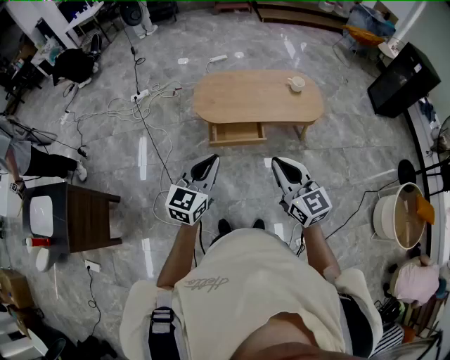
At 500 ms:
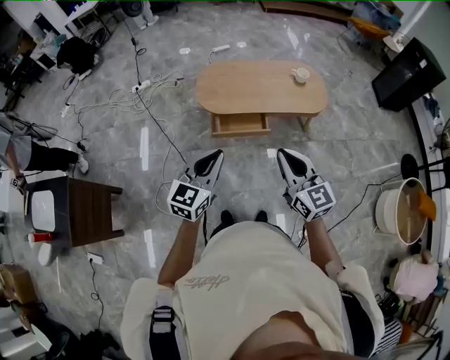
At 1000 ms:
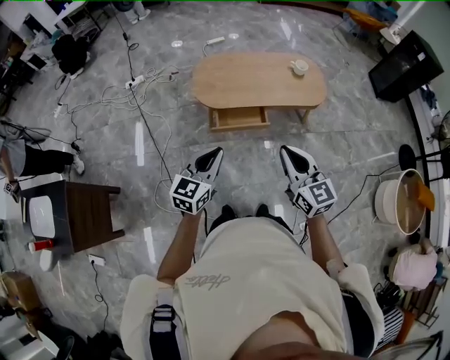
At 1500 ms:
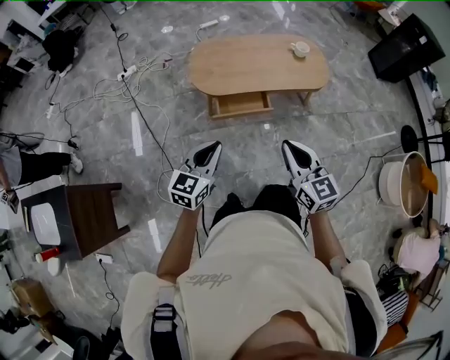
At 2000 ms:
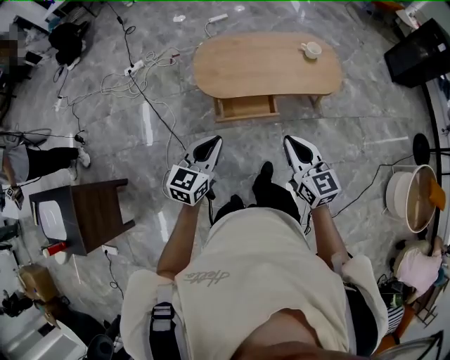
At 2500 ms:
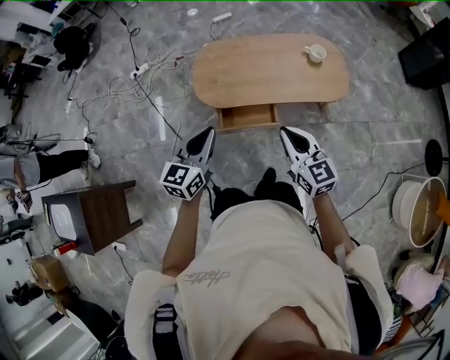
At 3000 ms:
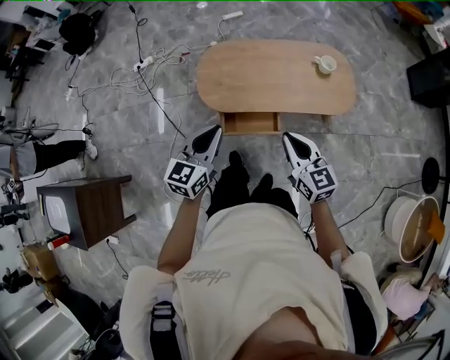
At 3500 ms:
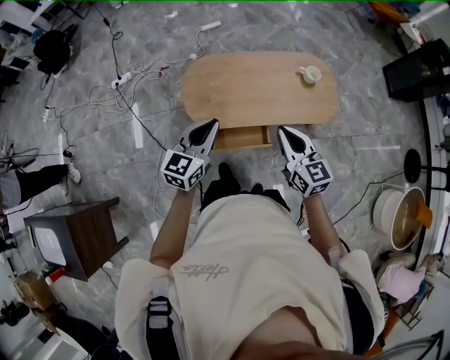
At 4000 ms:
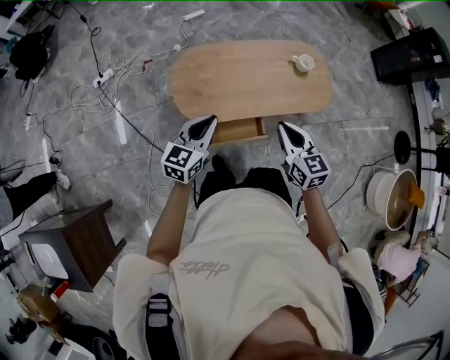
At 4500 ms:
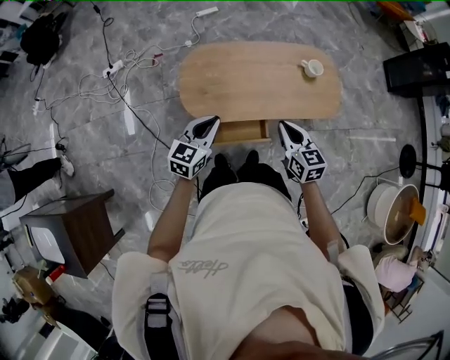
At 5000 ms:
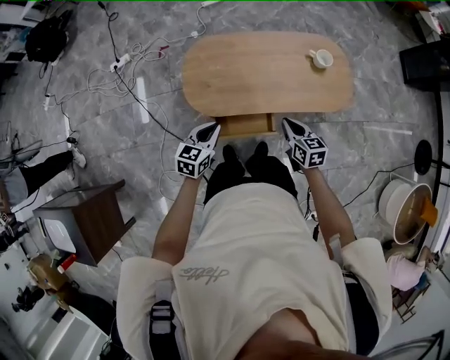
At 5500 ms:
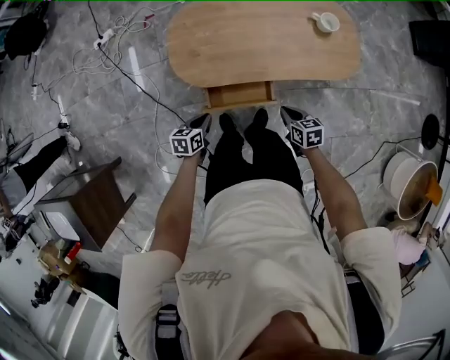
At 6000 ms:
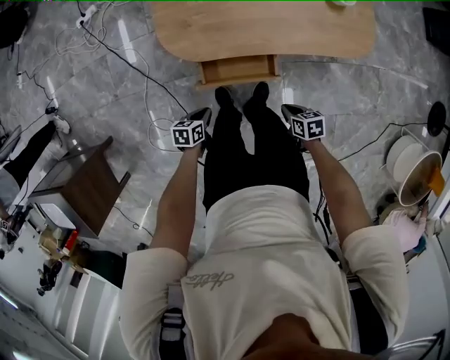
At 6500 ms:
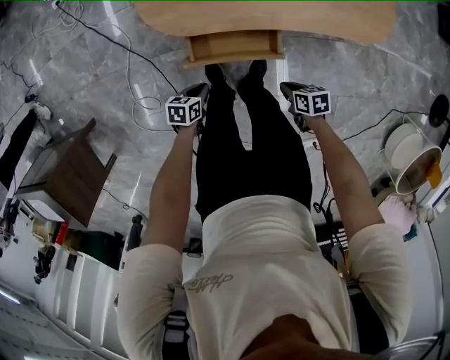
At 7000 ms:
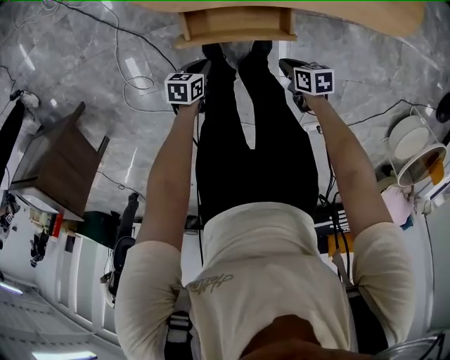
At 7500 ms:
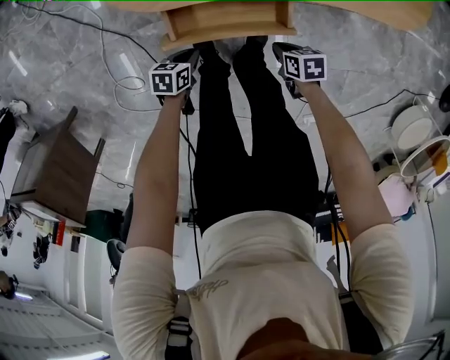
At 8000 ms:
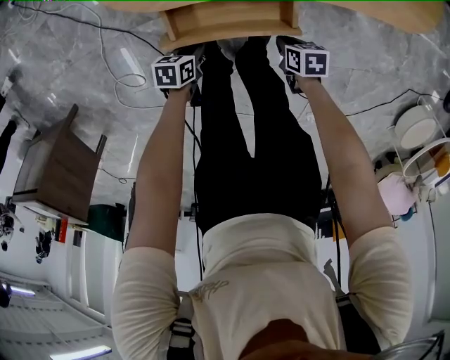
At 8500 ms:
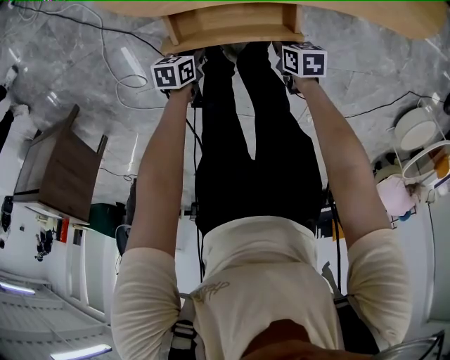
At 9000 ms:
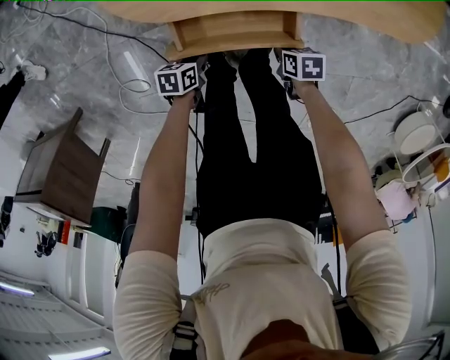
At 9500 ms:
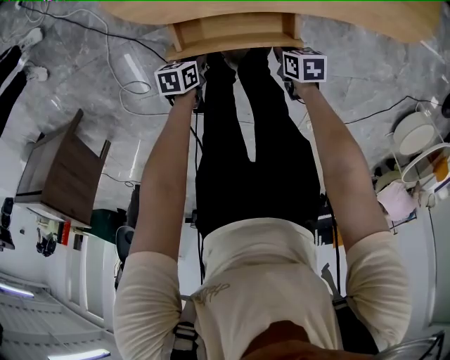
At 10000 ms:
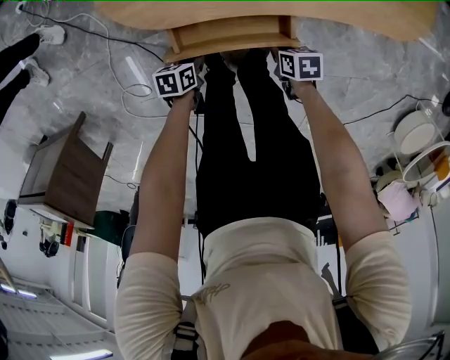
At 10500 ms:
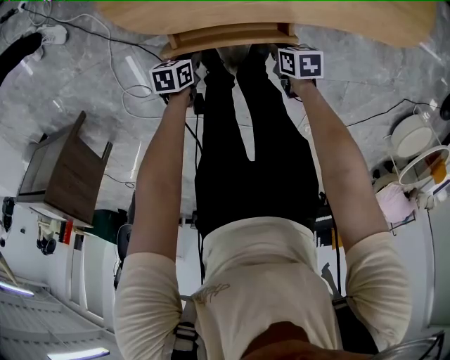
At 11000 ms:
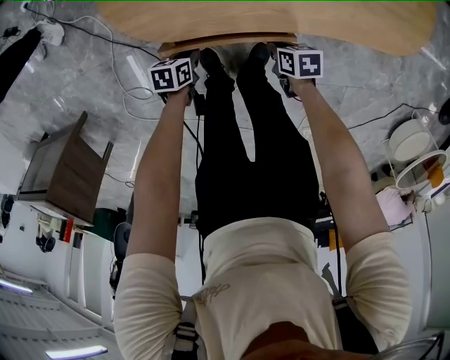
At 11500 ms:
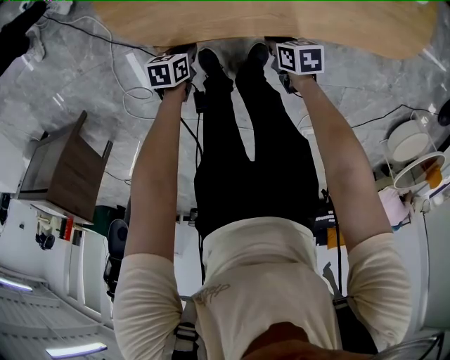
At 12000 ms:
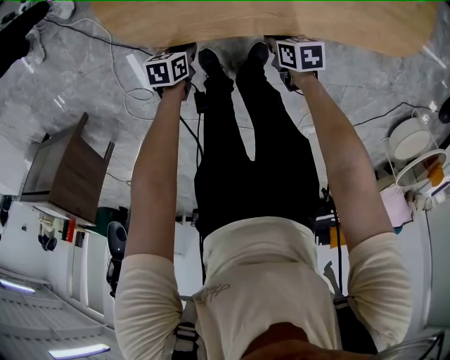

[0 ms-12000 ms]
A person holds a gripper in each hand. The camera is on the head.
0 ms to 2000 ms: Both grippers move forward and downward, roughly 20 cm.
2000 ms to 4000 ms: The two grippers go approximately 30 cm forward.
4000 ms to 6000 ms: Both grippers travel together downward, some 40 cm. The left gripper points its fingers some 40 degrees further downward. Meanwhile the right gripper tips its fingers downward by about 30 degrees.
6000 ms to 8000 ms: Both grippers travel together downward, some 30 cm.
8000 ms to 10000 ms: The grippers stay close to where they were, moving slightly.
10000 ms to 12000 ms: The right gripper ends up approximately 10 cm from where it was. The left gripper ends up approximately 10 cm from where it was.

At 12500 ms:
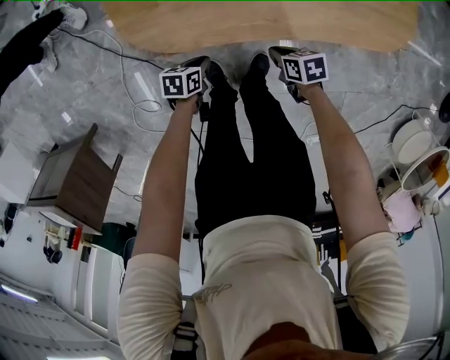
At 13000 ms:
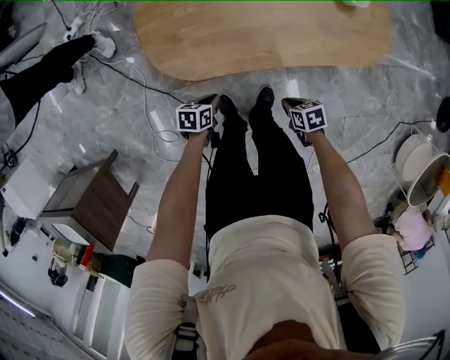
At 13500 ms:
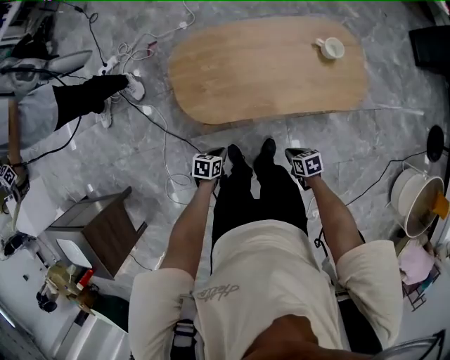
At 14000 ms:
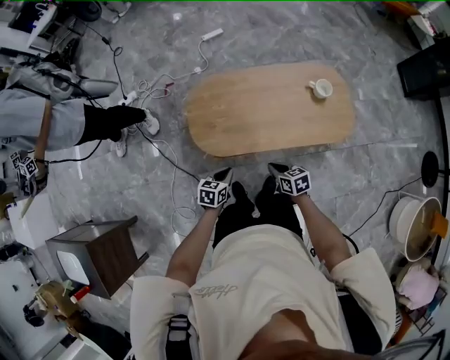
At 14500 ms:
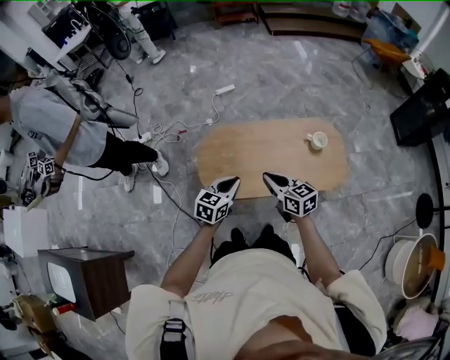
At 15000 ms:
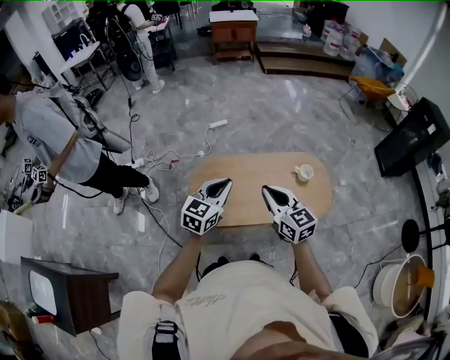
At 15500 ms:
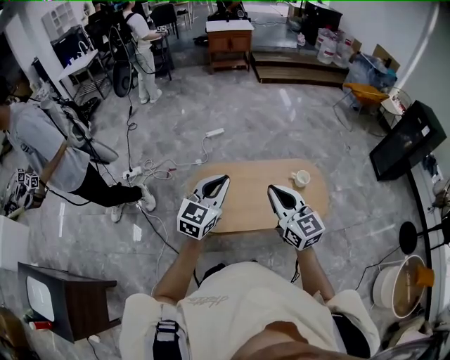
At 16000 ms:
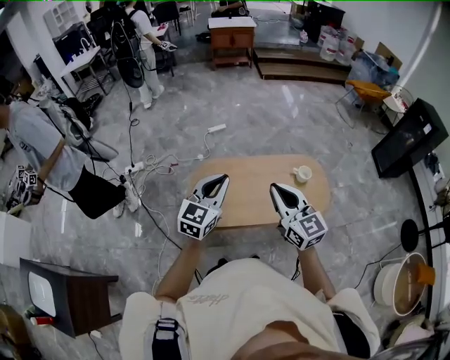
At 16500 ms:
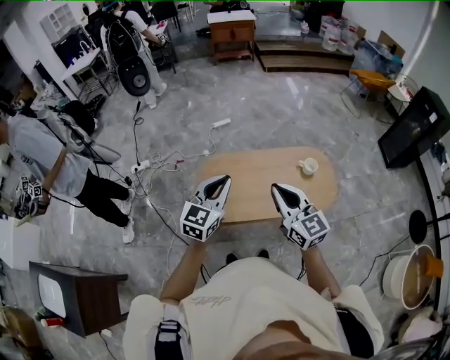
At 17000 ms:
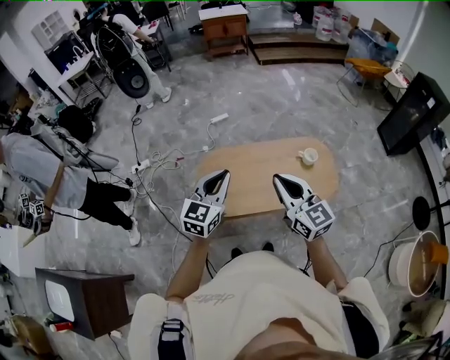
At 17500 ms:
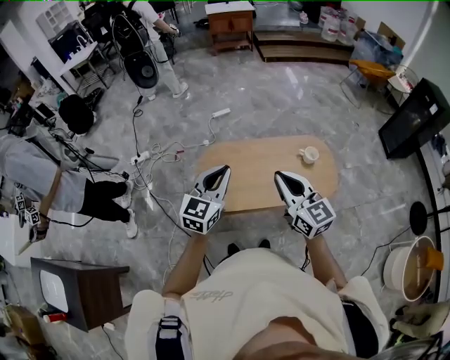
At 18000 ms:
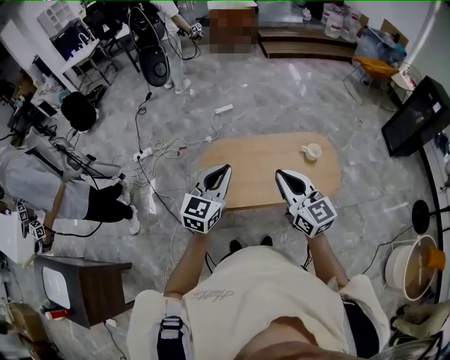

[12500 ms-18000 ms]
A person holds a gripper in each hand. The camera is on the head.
12500 ms to 14500 ms: Both grippers move upward, some 60 cm. The left gripper rotates about 50 degrees, while the right gripper angles its fingers upward, by approximately 40 degrees.
14500 ms to 16000 ms: The two grippers go some 20 cm upward. The right gripper changes its angle by some 30 degrees. Meanwhile the left gripper changes its angle by roughly 30 degrees.
16000 ms to 18000 ms: There are only small adjustments of the grippers.

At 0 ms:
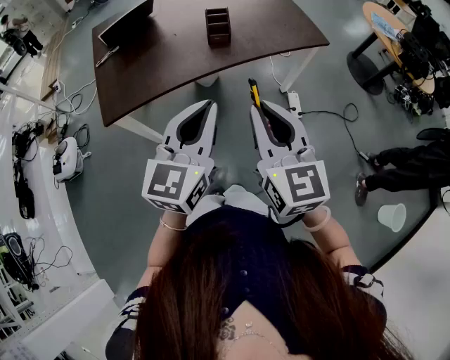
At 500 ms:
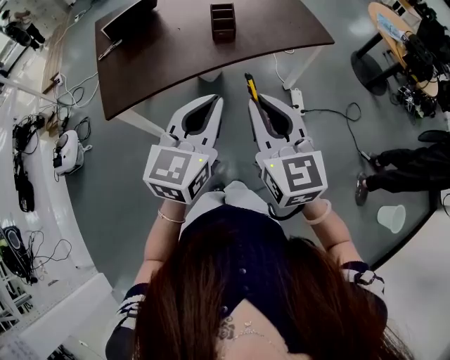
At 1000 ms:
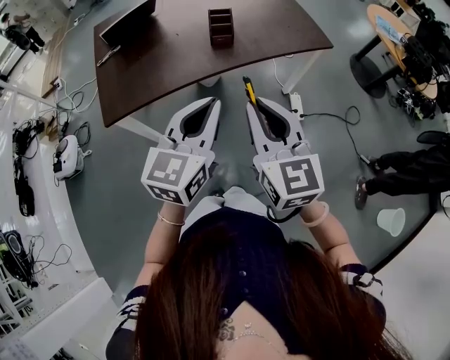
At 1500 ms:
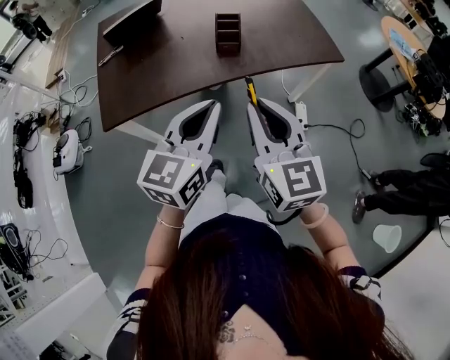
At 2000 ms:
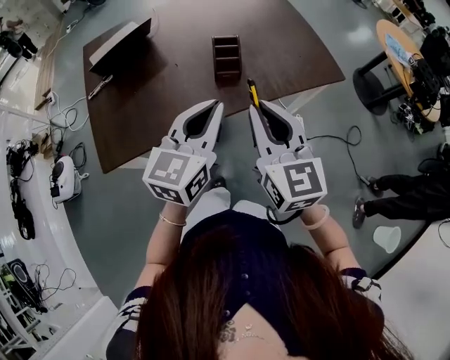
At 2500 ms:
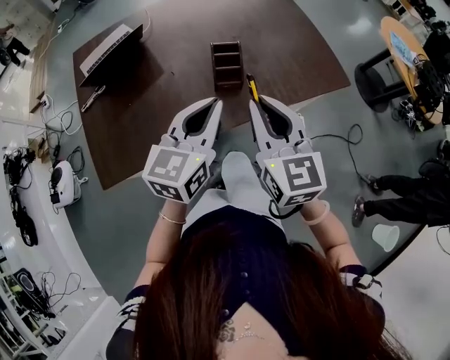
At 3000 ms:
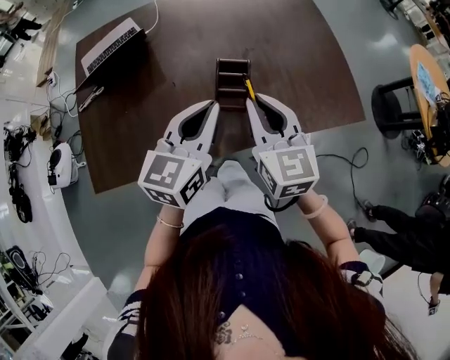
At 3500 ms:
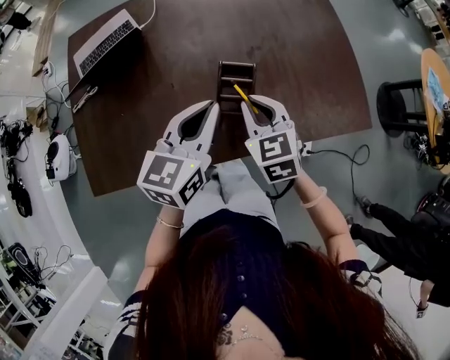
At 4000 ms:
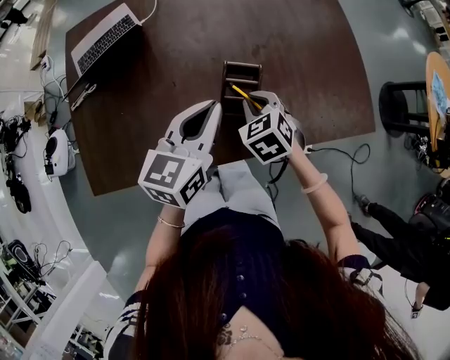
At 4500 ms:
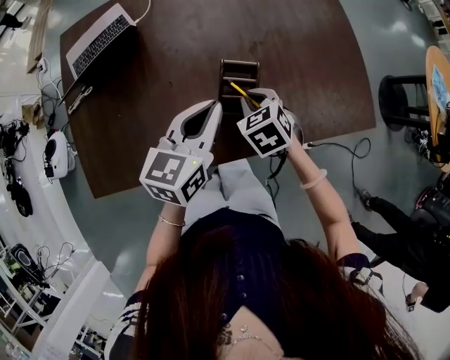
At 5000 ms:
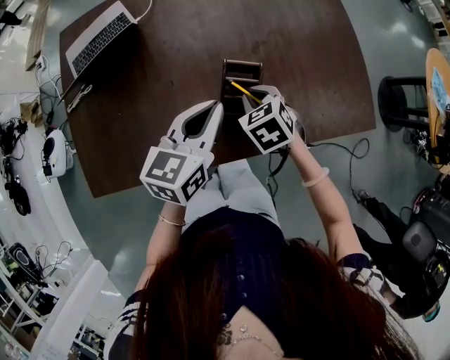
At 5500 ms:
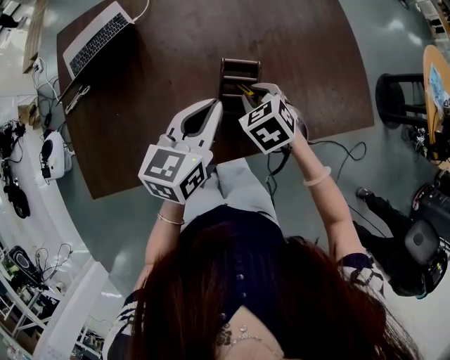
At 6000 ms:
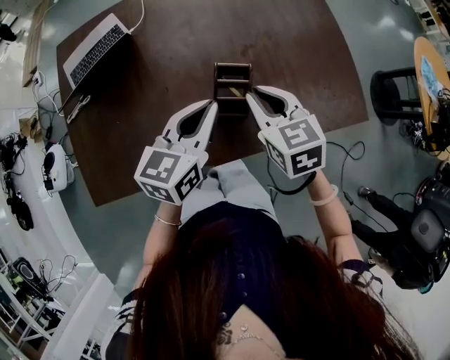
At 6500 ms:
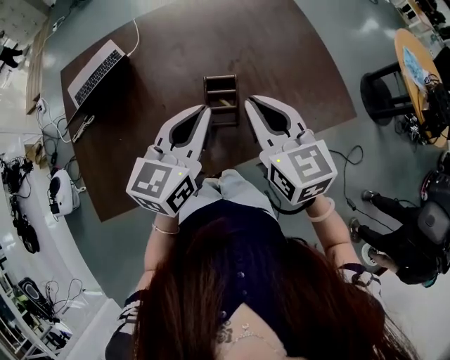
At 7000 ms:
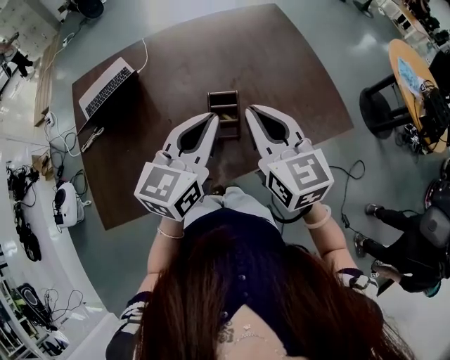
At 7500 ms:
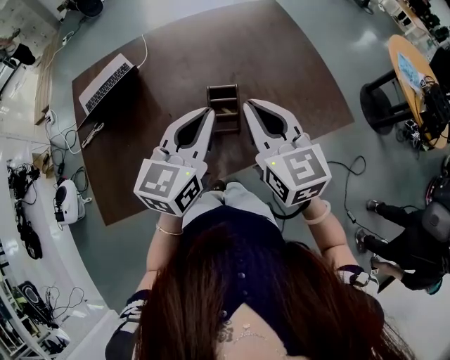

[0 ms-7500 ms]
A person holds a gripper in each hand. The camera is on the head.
0 ms to 2000 ms: The grippers both shift forward by about 25 cm.
2000 ms to 4000 ms: The grippers both shift forward and downward by about 30 cm. The right gripper angles its fingers downward, by roughly 50 degrees.
4000 ms to 5500 ms: The grippers move only a little.
5500 ms to 7500 ms: The left gripper is displaced upward by about 10 cm, while the right gripper goes about 25 cm upward, and points its fingers approximately 50 degrees further upward.

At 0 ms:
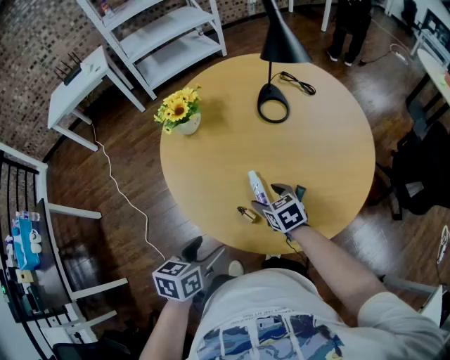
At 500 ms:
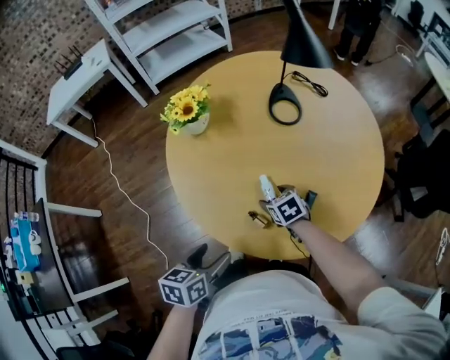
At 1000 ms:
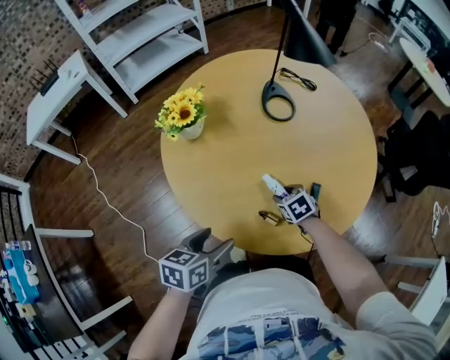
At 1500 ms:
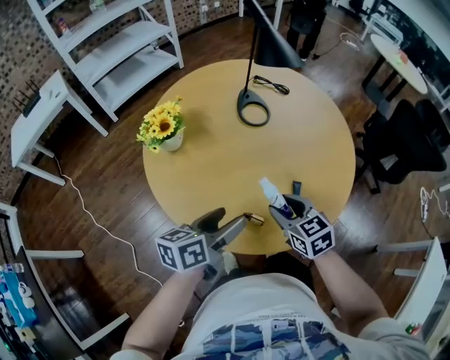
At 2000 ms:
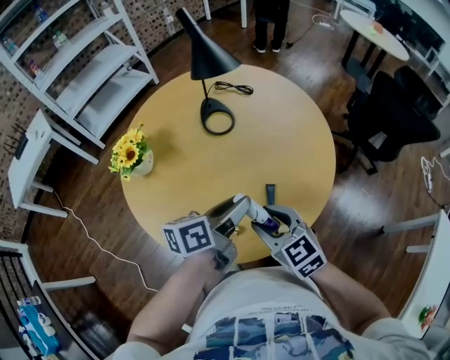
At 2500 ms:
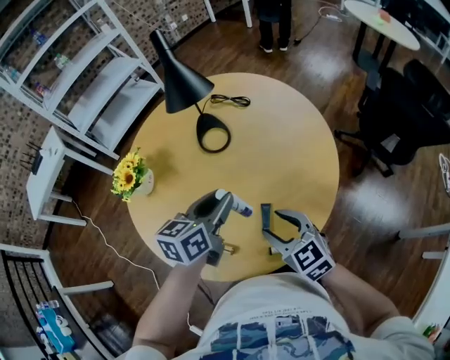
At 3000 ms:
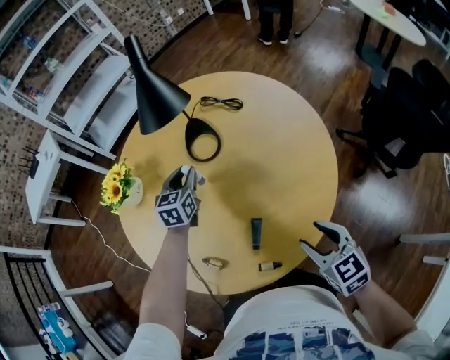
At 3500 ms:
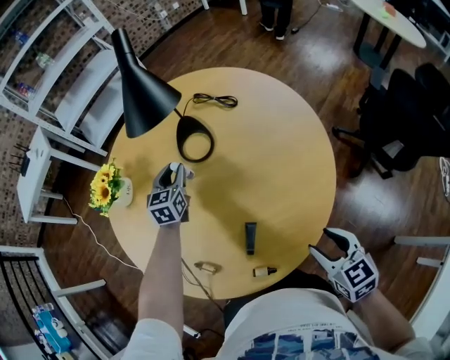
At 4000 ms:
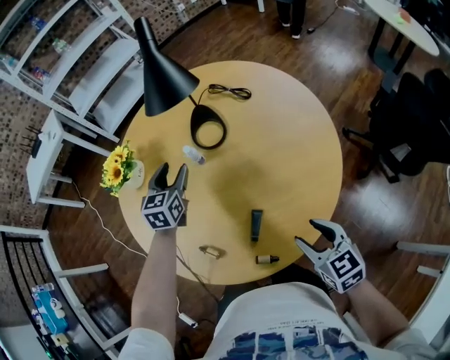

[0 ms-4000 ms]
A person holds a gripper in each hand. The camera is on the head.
0 ms to 2000 ms: The right gripper heads upward, covering approximately 15 cm, rotates roughly 30 degrees, and closes up, while the left gripper shifts by approximately 25 cm, rotates roughly 40 degrees, and closes up.
2000 ms to 4000 ms: The right gripper heads to the right, covering about 25 cm. Meanwhile the left gripper is displaced forward by about 25 cm, and swivels about 60 degrees.
